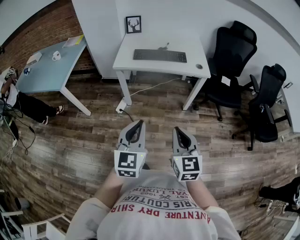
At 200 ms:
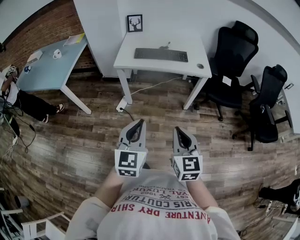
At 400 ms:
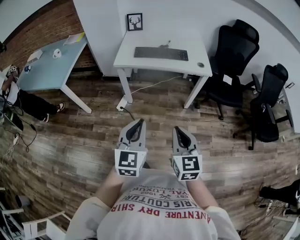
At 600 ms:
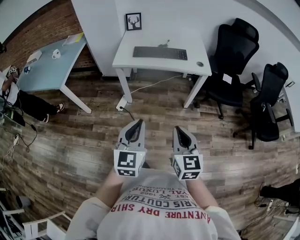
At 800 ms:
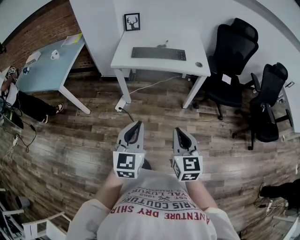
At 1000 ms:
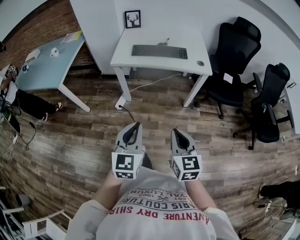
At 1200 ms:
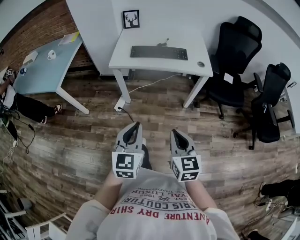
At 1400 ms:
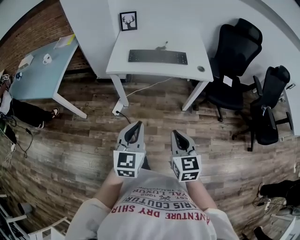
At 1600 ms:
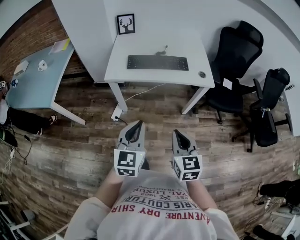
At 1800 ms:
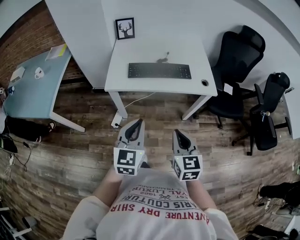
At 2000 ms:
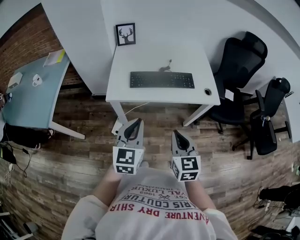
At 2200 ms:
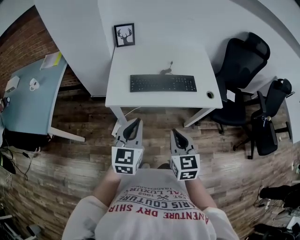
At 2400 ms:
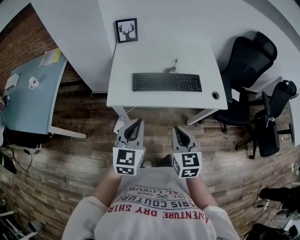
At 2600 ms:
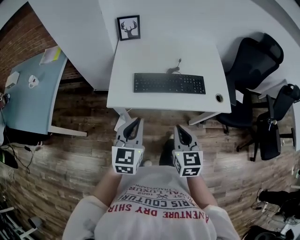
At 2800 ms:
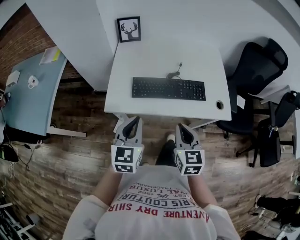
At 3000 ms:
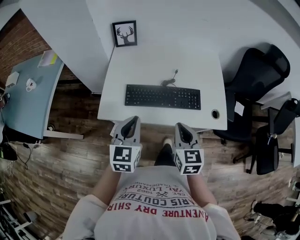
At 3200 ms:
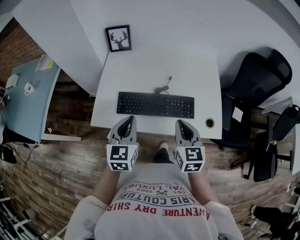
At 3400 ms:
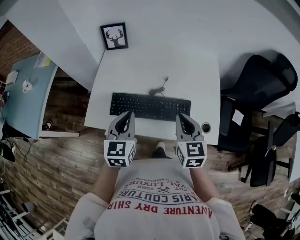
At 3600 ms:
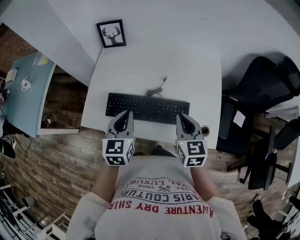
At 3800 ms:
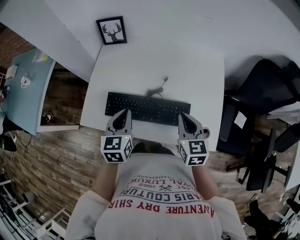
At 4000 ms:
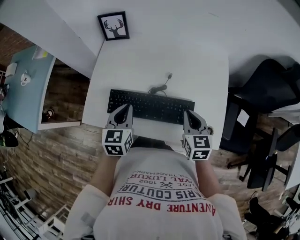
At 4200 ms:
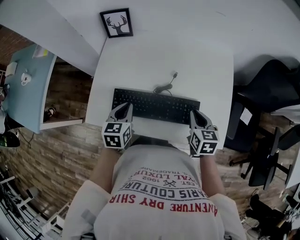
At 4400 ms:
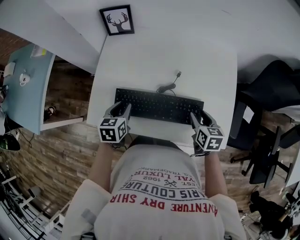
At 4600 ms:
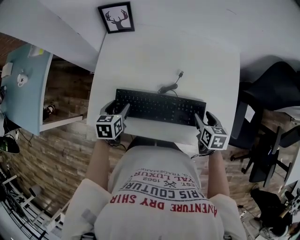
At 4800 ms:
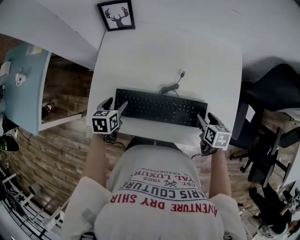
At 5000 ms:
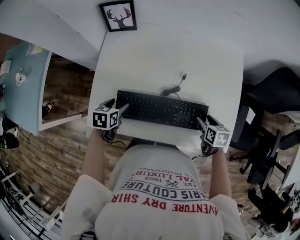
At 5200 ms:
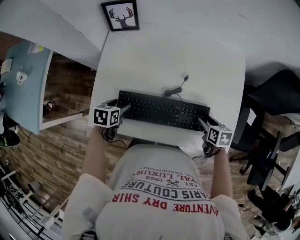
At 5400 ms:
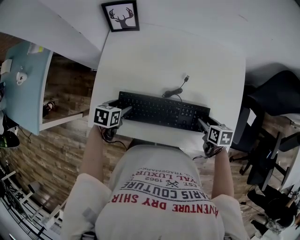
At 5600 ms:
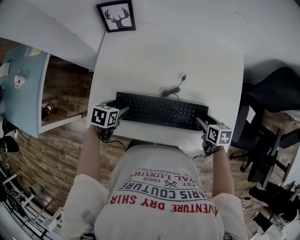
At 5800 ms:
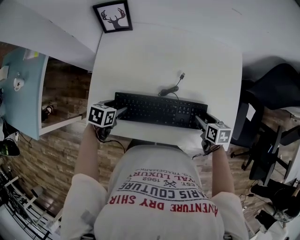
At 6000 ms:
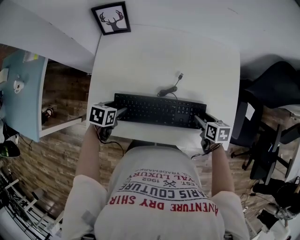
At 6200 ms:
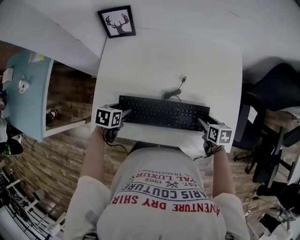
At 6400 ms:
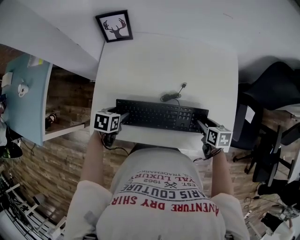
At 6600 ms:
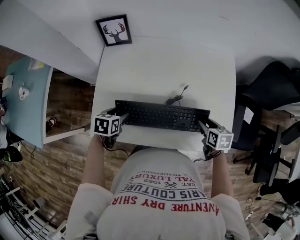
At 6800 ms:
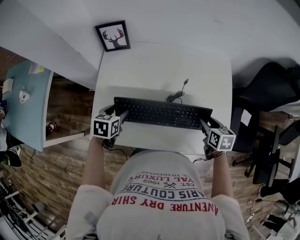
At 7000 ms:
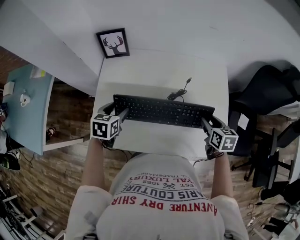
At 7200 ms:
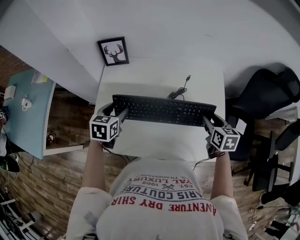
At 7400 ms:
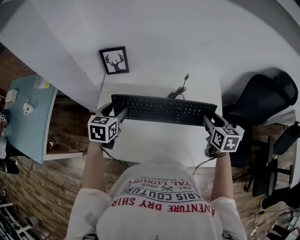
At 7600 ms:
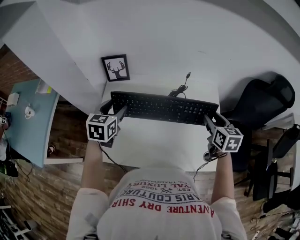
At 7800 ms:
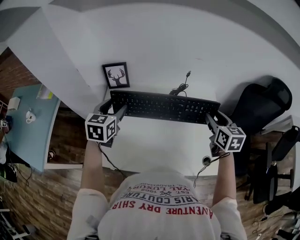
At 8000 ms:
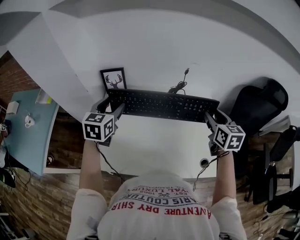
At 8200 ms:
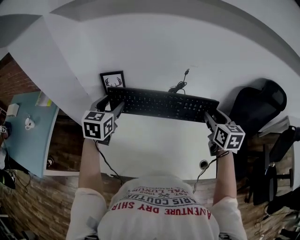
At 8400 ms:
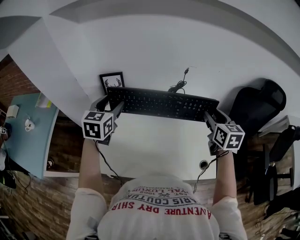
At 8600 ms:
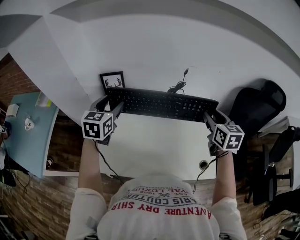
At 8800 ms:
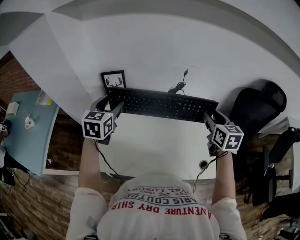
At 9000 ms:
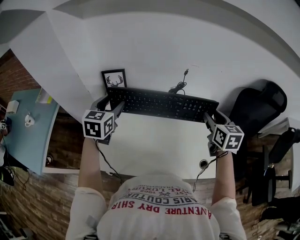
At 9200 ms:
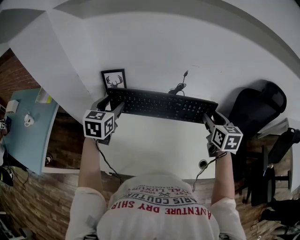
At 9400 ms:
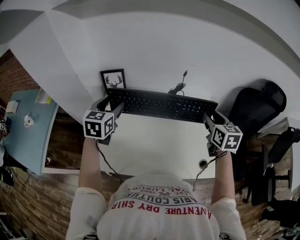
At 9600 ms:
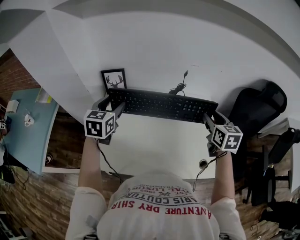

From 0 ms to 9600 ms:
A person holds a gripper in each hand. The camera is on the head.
From 0 ms to 1600 ms: The grippers both shift forward by about 15 cm.
From 1600 ms to 3200 ms: Both grippers move forward, some 40 cm.
From 3200 ms to 4800 ms: The left gripper heads downward and forward, covering approximately 25 cm, tilts its fingers about 30 degrees downward, and opens its fingers. The right gripper goes approximately 25 cm downward, to the right and forward, angles its fingers downward, by some 30 degrees, and opens.
From 6400 ms to 8000 ms: The right gripper goes about 30 cm upward, and tips its fingers upward by about 30 degrees. Meanwhile the left gripper shifts approximately 35 cm upward and forward, and angles its fingers upward, by roughly 40 degrees.
From 8000 ms to 9600 ms: The grippers move only a little.

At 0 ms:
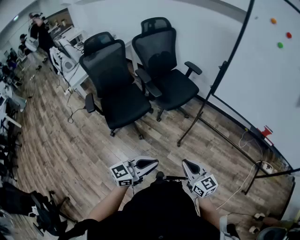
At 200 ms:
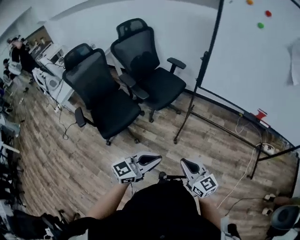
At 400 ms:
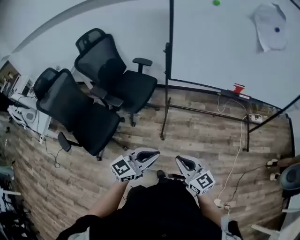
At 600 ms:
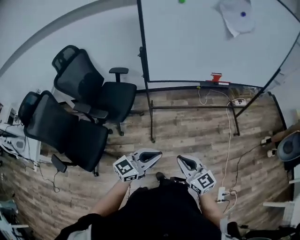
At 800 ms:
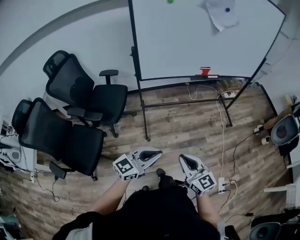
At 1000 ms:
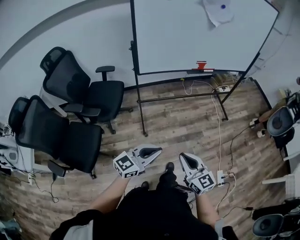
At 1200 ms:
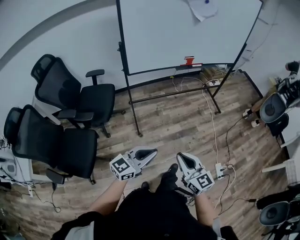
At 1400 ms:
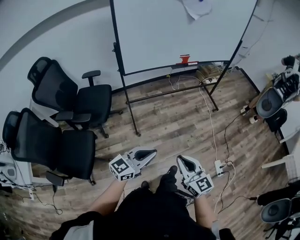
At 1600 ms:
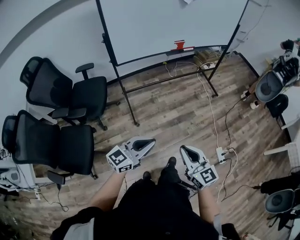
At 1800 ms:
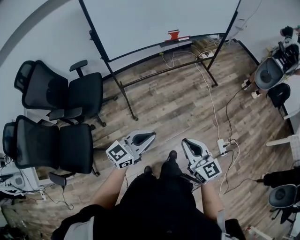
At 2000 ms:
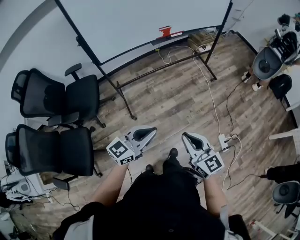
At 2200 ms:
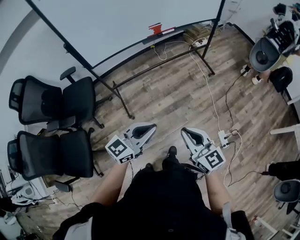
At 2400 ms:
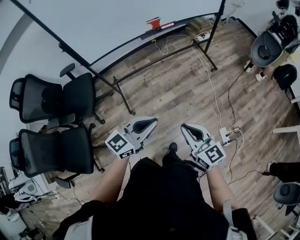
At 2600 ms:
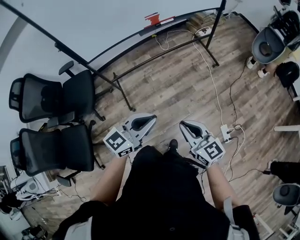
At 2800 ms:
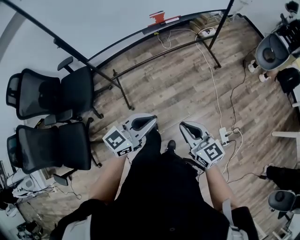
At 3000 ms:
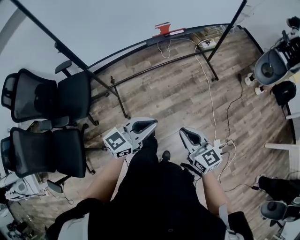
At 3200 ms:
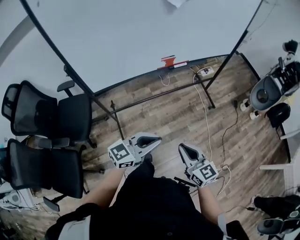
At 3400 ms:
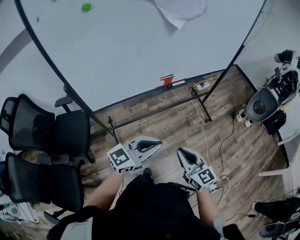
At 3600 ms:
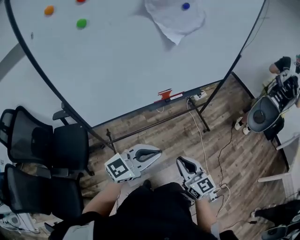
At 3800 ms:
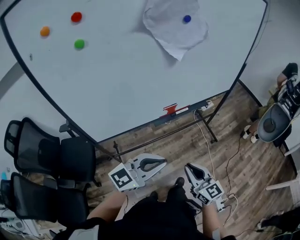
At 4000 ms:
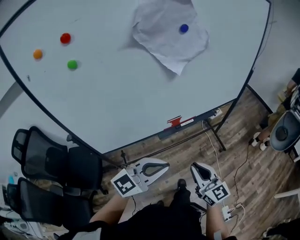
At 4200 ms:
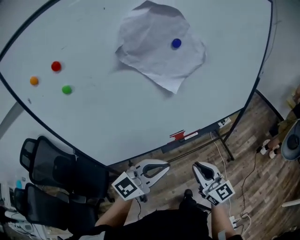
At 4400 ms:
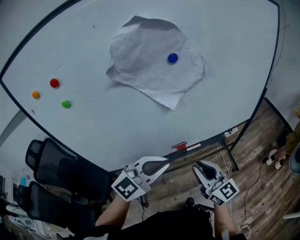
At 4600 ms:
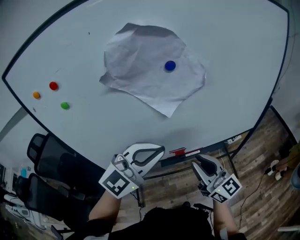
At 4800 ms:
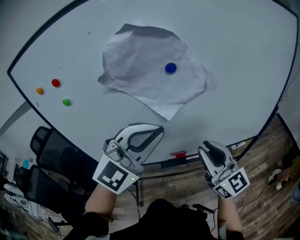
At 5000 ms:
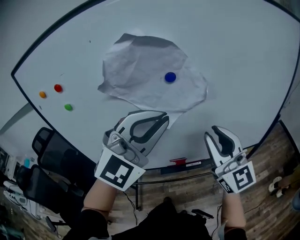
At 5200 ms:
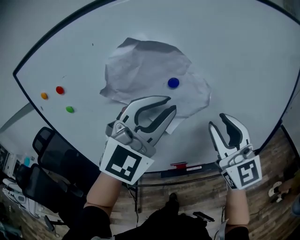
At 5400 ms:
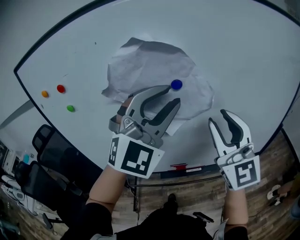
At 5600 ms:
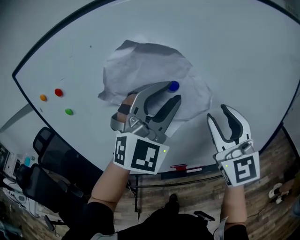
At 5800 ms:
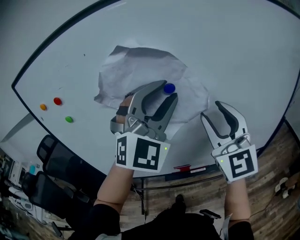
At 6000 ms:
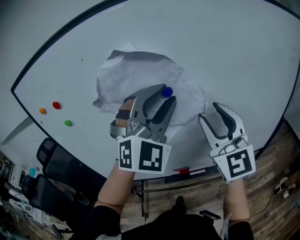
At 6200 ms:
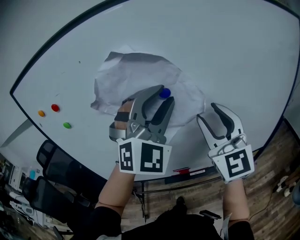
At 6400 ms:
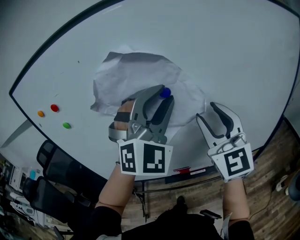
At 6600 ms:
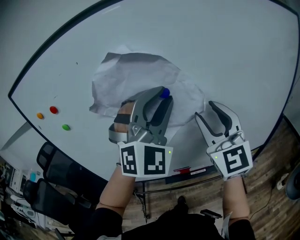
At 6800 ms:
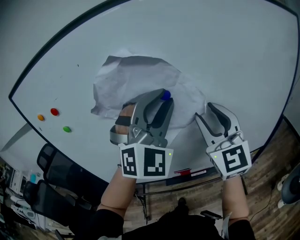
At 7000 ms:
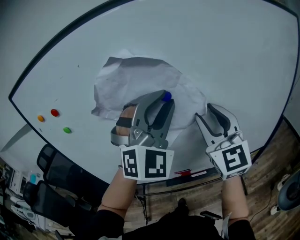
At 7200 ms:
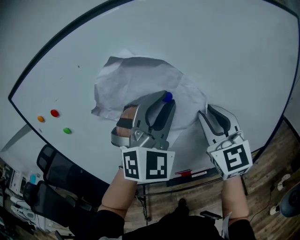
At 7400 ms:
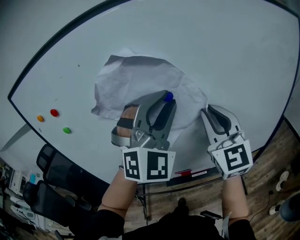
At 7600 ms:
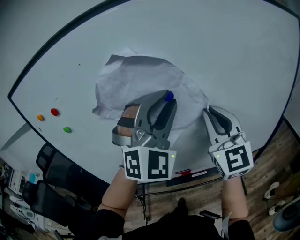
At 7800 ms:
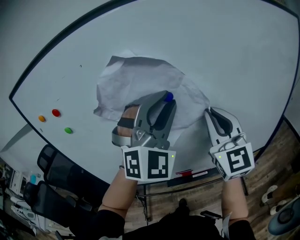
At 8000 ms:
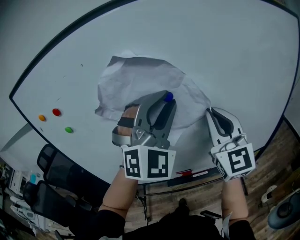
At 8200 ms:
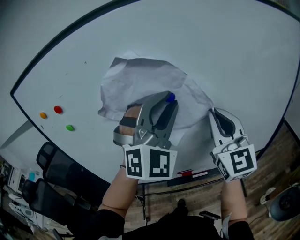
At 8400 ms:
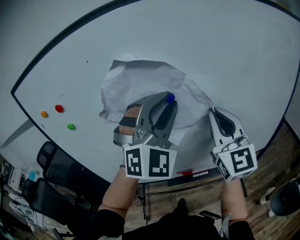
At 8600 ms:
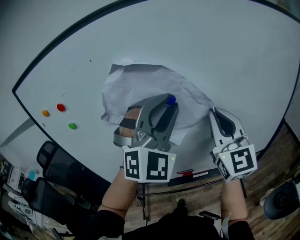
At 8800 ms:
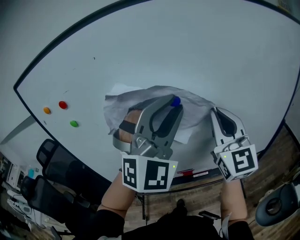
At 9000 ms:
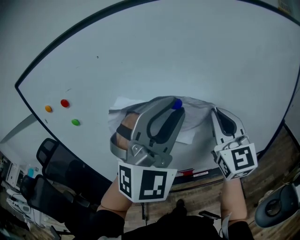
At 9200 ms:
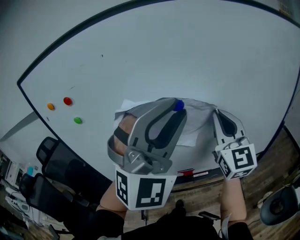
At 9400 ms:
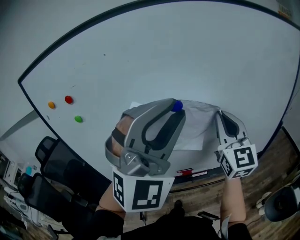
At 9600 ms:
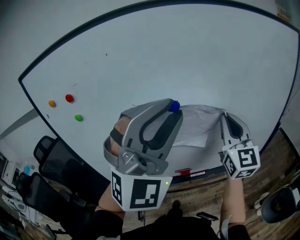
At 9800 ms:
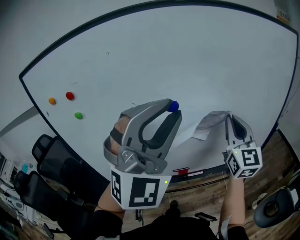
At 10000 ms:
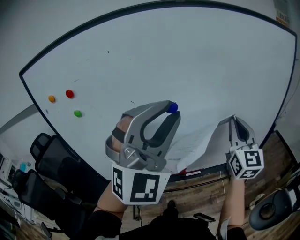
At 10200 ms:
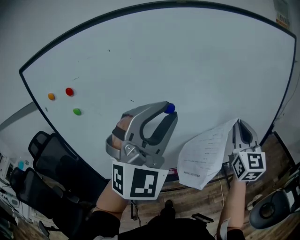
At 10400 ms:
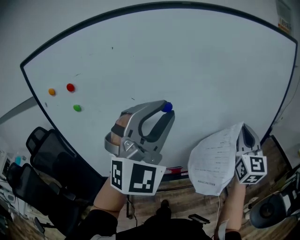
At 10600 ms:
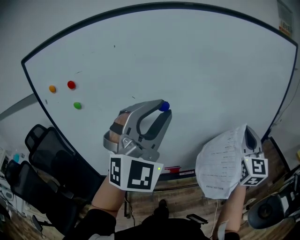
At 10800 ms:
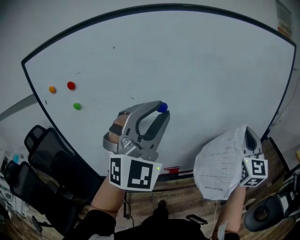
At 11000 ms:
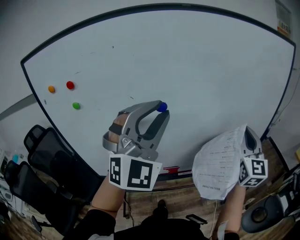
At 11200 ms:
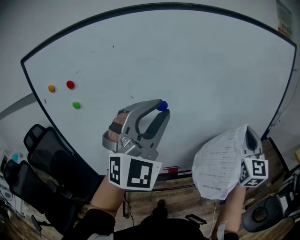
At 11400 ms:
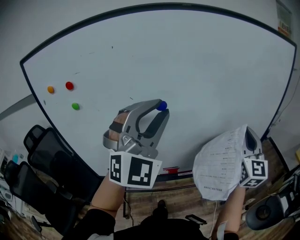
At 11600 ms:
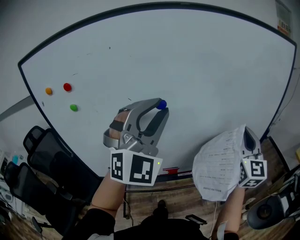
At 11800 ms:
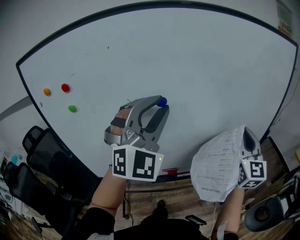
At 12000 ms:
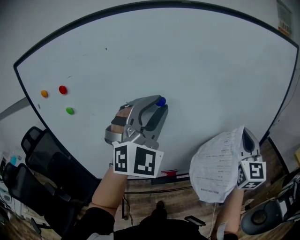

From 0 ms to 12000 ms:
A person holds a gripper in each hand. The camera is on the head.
From 0 ms to 1600 ms: The left gripper turns by some 50 degrees. Meanwhile the right gripper changes place by about 15 cm, and changes its angle by approximately 60 degrees.
From 1600 ms to 3000 ms: Both grippers move forward, approximately 25 cm.
From 3000 ms to 4400 ms: Both grippers travel together forward and upward, about 40 cm. The left gripper rolls clockwise, seen from behind, by some 40 degrees. The right gripper turns by roughly 20 degrees.
From 4400 ms to 6000 ms: Both grippers travel together upward and forward, about 30 cm. The left gripper swivels roughly 60 degrees, and opens; the right gripper changes its angle by some 30 degrees, and opens its fingers.
From 6000 ms to 7600 ms: The right gripper closes.
From 7600 ms to 9000 ms: The left gripper goes roughly 5 cm backward.
From 9000 ms to 10400 ms: The right gripper travels to the right by about 15 cm.
From 10400 ms to 12000 ms: The left gripper goes about 5 cm forward.

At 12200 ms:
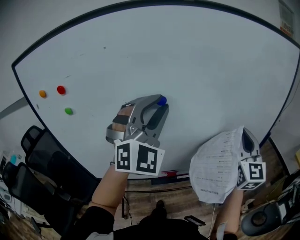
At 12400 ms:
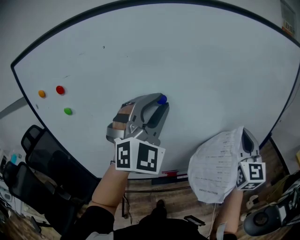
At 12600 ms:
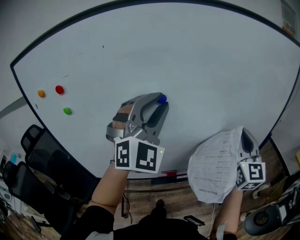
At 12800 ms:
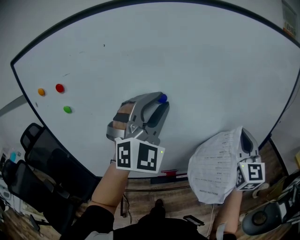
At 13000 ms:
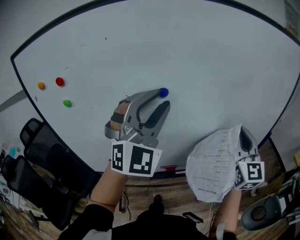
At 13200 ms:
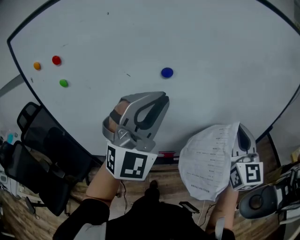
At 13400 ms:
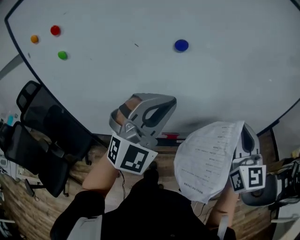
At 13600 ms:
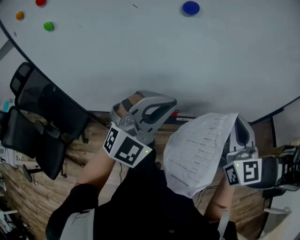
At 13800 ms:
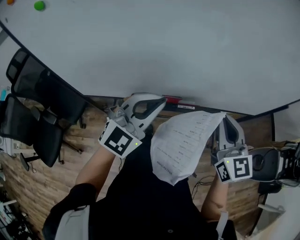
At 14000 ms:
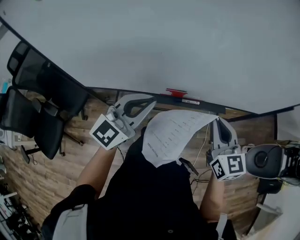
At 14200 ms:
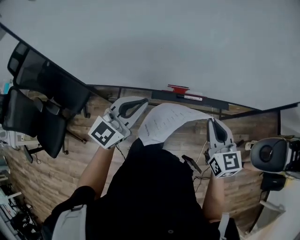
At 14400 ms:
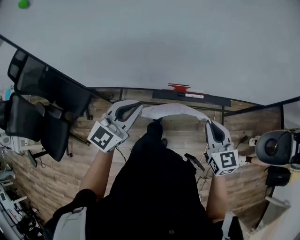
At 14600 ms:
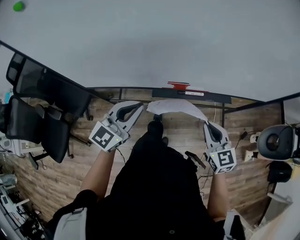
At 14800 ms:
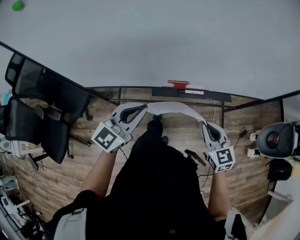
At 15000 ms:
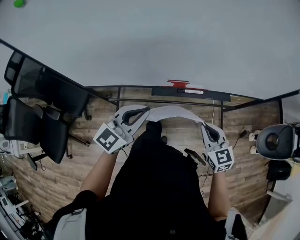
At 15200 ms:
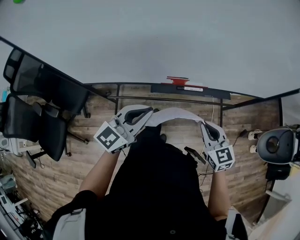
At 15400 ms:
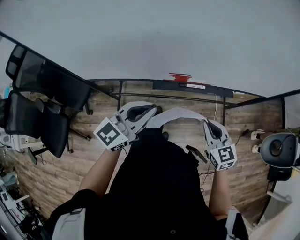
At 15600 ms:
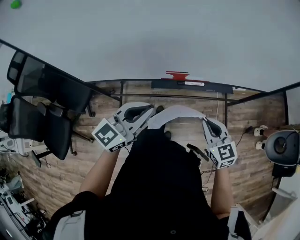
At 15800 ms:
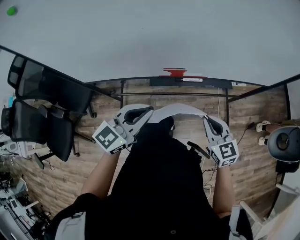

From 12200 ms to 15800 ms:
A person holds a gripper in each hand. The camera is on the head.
From 12200 ms to 14000 ms: The grippers both shift downward by approximately 30 cm. The left gripper rotates around the line of its fingers by about 60 degrees, counterclockwise from behind, and closes; the right gripper turns by some 40 degrees.
From 14000 ms to 15800 ms: The left gripper goes about 10 cm downward and backward. The right gripper shifts about 15 cm downward and backward.
